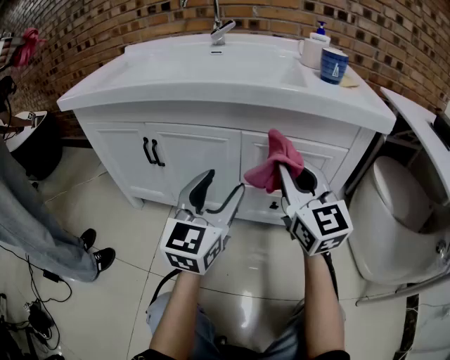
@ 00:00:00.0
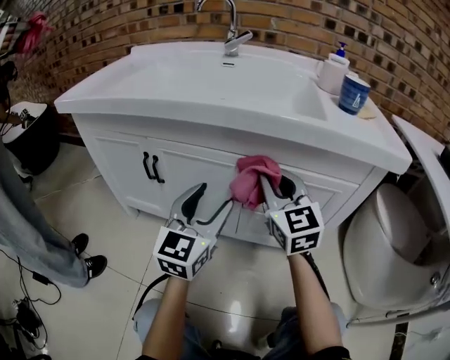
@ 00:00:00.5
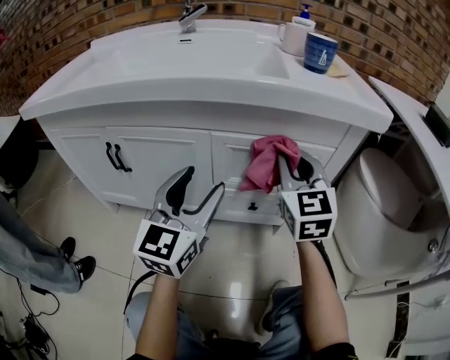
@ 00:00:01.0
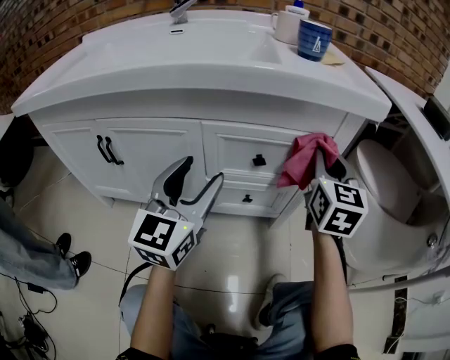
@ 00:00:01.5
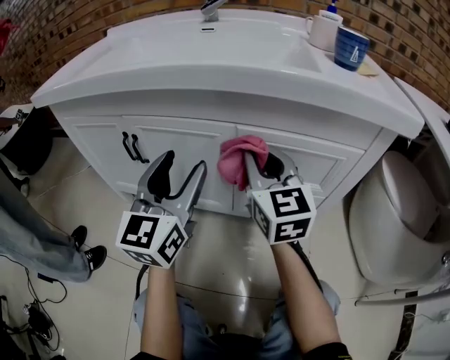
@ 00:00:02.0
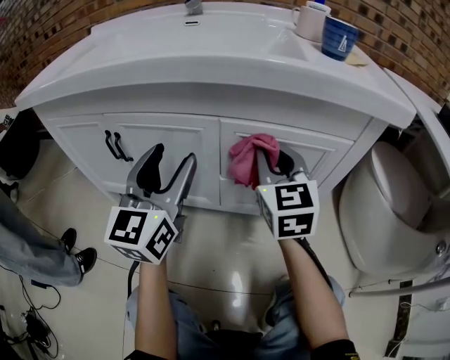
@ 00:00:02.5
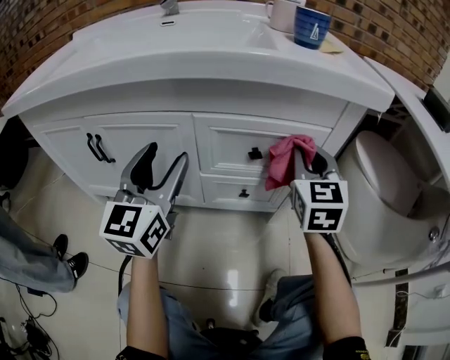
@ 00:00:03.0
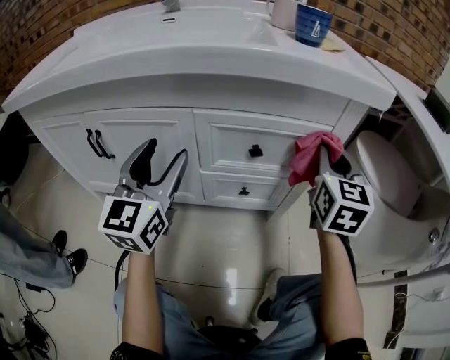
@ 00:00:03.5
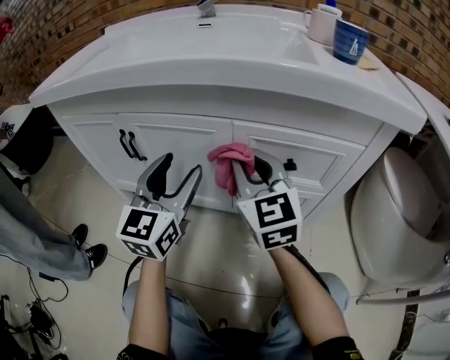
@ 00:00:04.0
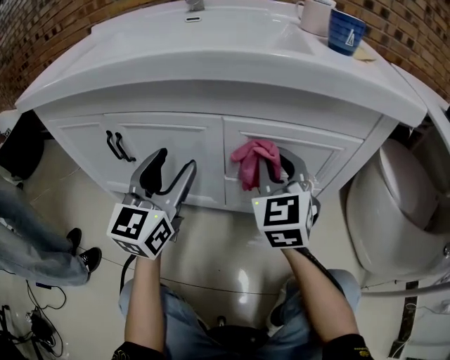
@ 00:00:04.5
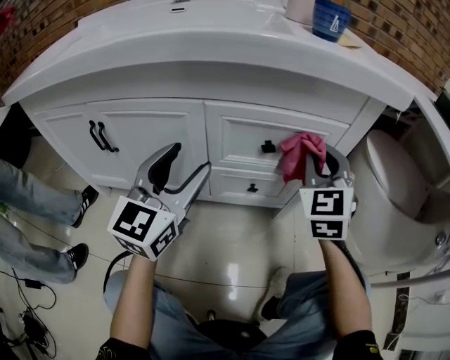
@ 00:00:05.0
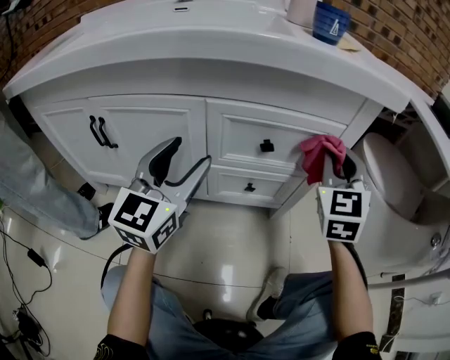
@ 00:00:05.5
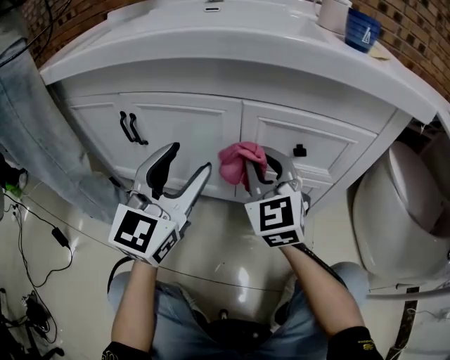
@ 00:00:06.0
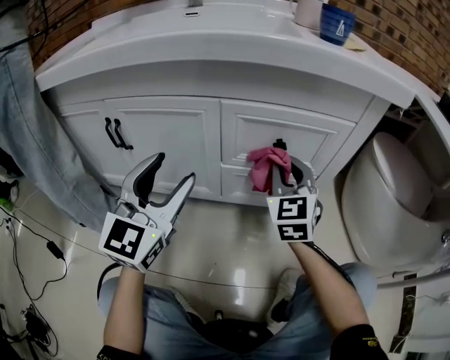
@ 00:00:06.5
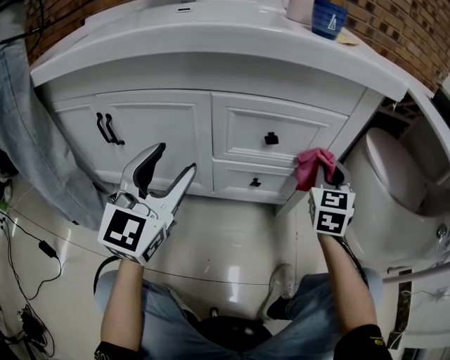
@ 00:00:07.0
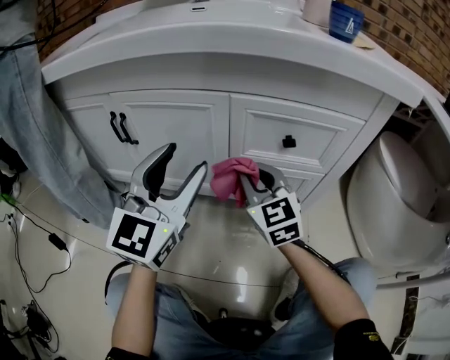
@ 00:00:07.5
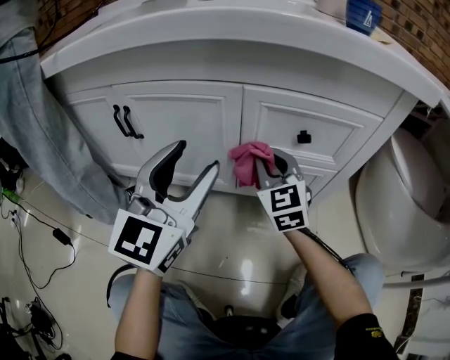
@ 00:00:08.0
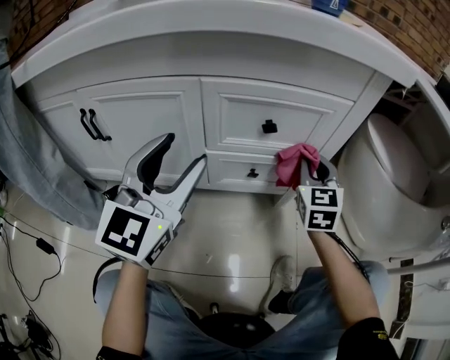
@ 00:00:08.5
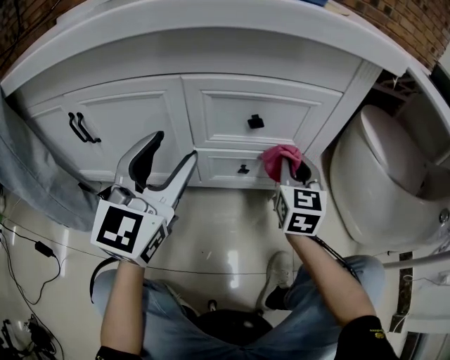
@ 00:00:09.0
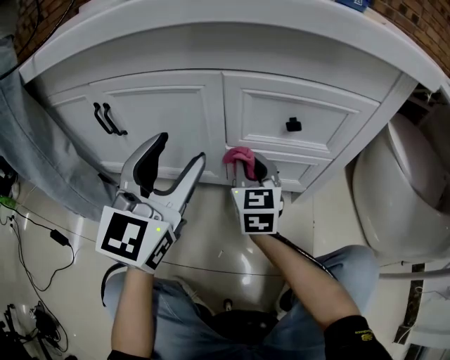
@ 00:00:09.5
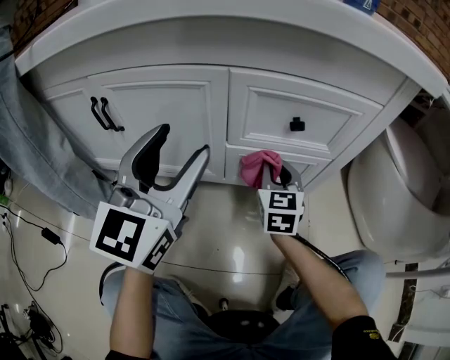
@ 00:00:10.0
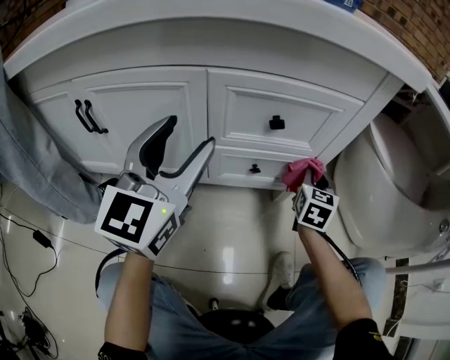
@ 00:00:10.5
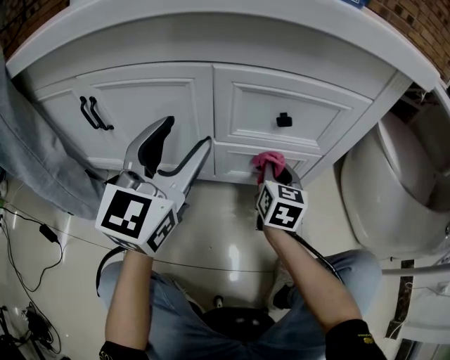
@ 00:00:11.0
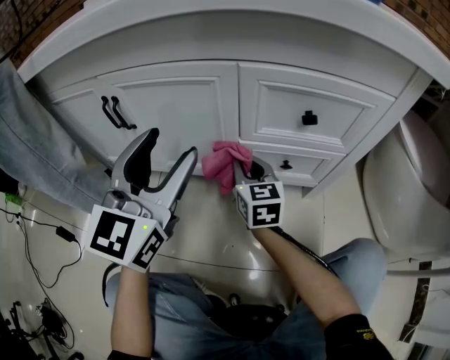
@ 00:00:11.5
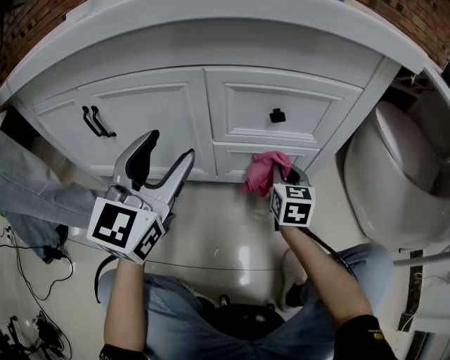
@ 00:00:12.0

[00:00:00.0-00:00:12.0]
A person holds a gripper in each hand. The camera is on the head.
00:00:00.0 to 00:00:02.0: The right gripper moves left and right over roughly 25 cm, changing direction 2 times. Meanwhile the left gripper moves left and right over roughly 10 cm, changing direction 2 times.
00:00:02.0 to 00:00:04.0: The right gripper moves some 25 cm to the right and comes back.
00:00:04.0 to 00:00:06.0: The right gripper moves some 25 cm to the right and comes back, while the left gripper goes to the right and returns, approximately 10 cm each way.
00:00:06.0 to 00:00:08.0: The right gripper shifts approximately 10 cm downward, and goes to the right and returns, some 25 cm each way.
00:00:08.0 to 00:00:10.0: The right gripper swings left and right, some 20 cm each way, with 2 reversals, and turns by some 20 degrees.
00:00:10.0 to 00:00:12.0: The right gripper moves left and right over approximately 30 cm, changing direction 2 times.

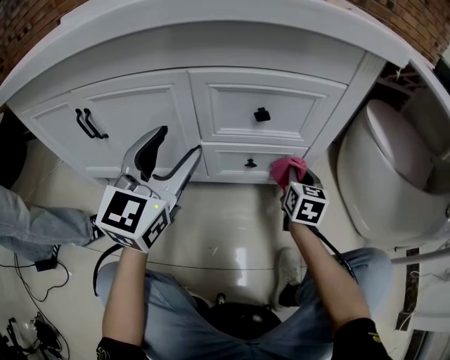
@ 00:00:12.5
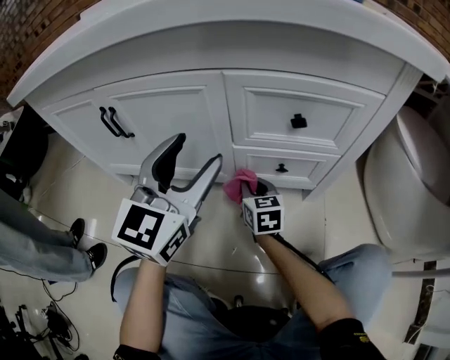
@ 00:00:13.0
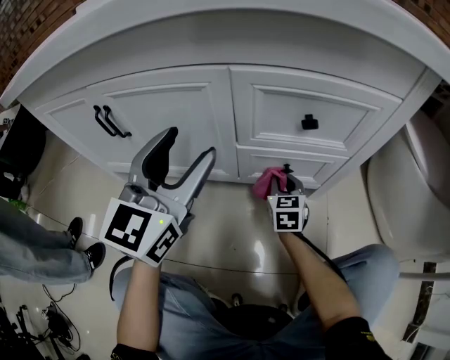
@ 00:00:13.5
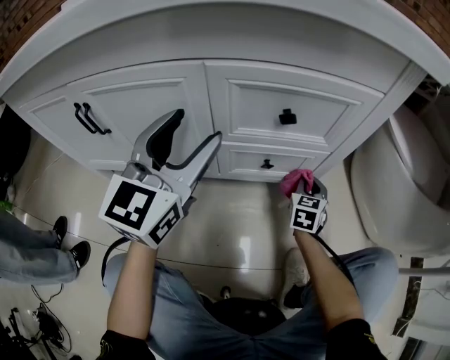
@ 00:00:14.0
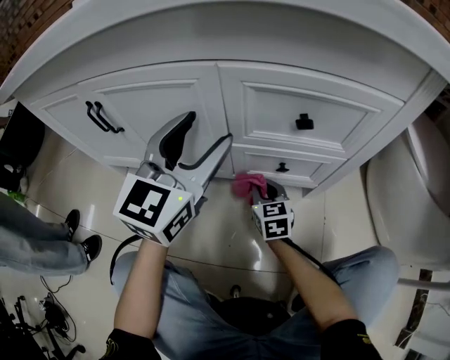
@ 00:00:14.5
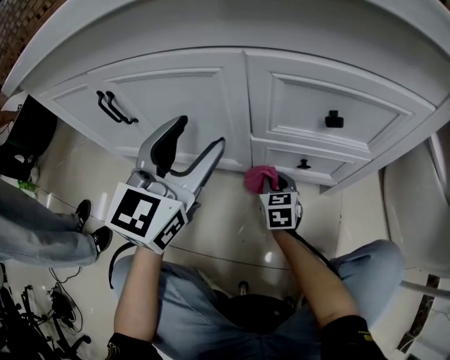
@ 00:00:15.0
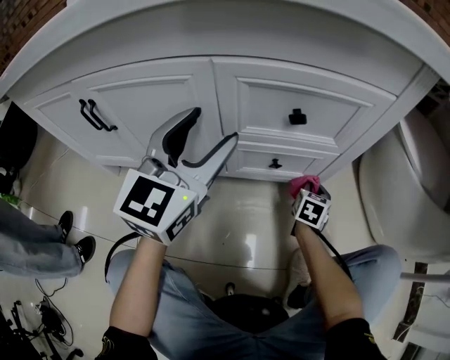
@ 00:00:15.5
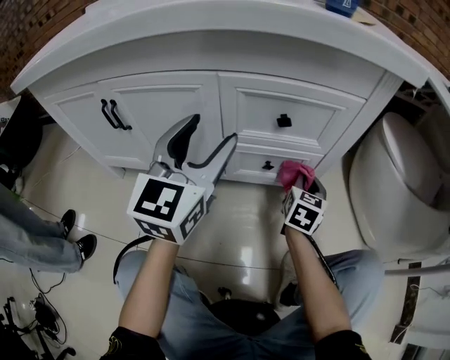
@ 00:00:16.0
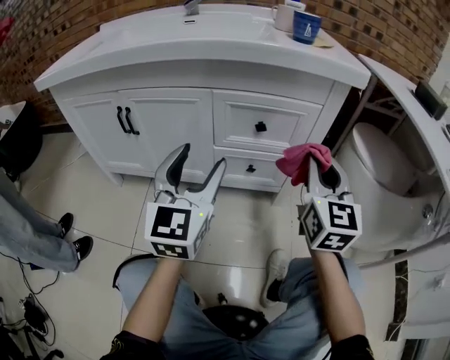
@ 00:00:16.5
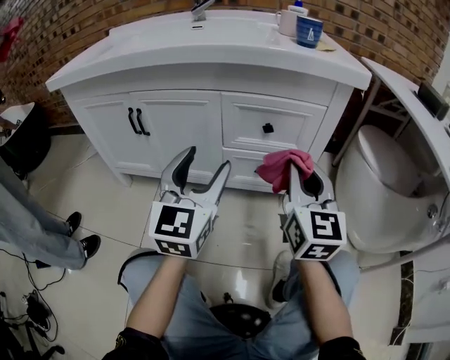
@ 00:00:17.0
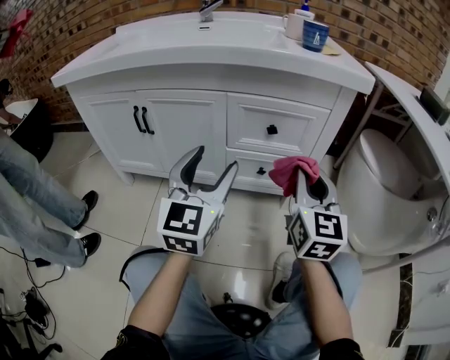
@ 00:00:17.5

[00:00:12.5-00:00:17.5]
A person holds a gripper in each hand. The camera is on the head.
00:00:12.5 to 00:00:15.0: The right gripper moves left and right over some 25 cm, changing direction 2 times, and swivels about 30 degrees, while the left gripper swings left and right, approximately 5 cm each way, with 2 reversals.
00:00:15.0 to 00:00:17.5: The left gripper travels backward, to the right and upward by roughly 20 cm. Meanwhile the right gripper heads upward, to the right and backward, covering some 40 cm, and tips its fingers upward by approximately 40 degrees.

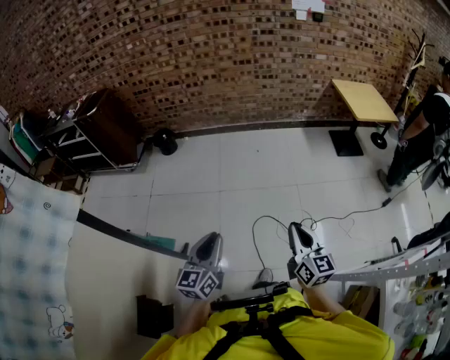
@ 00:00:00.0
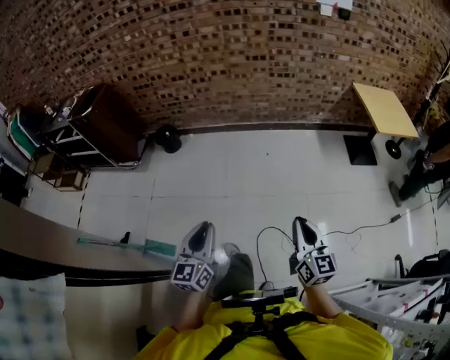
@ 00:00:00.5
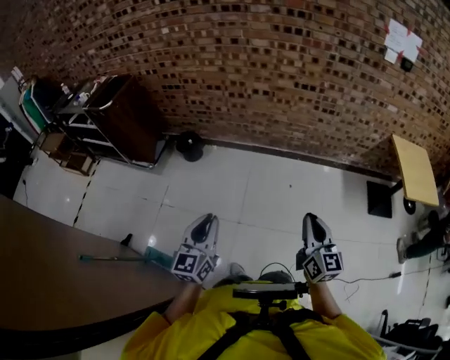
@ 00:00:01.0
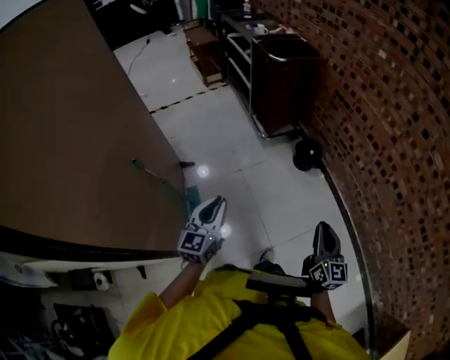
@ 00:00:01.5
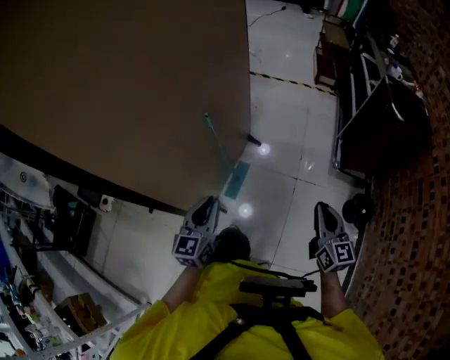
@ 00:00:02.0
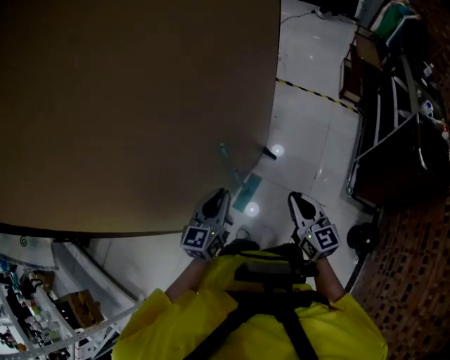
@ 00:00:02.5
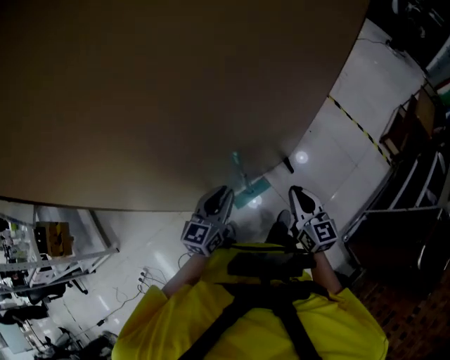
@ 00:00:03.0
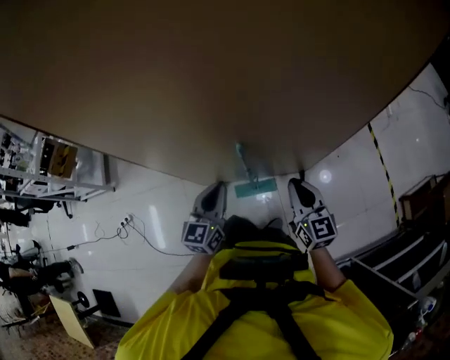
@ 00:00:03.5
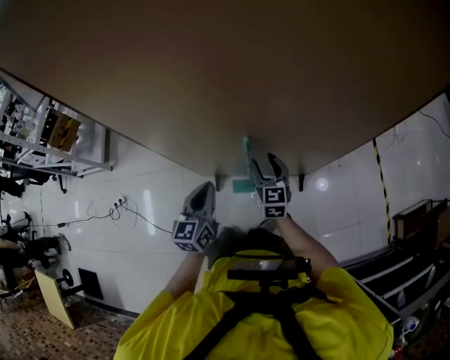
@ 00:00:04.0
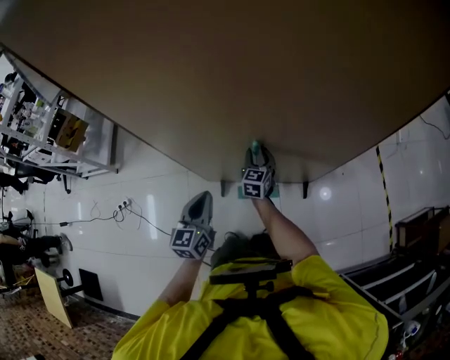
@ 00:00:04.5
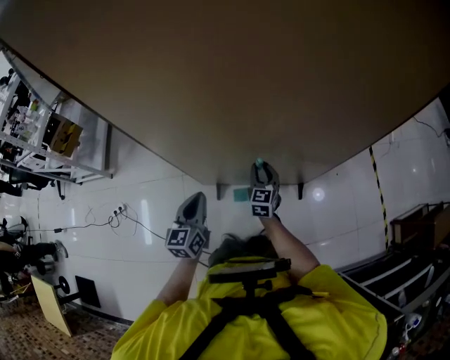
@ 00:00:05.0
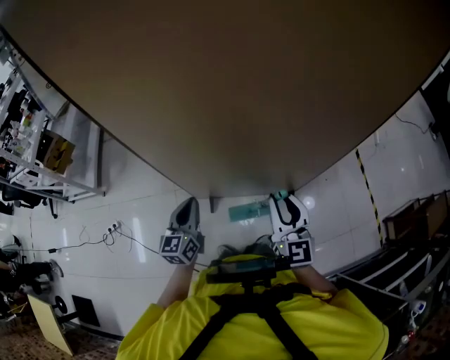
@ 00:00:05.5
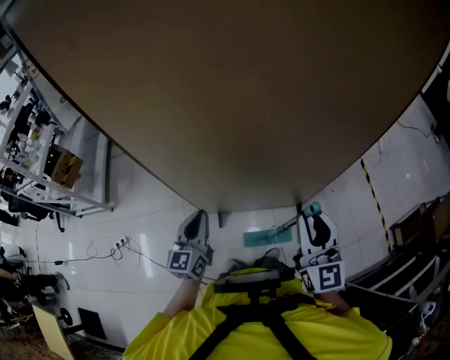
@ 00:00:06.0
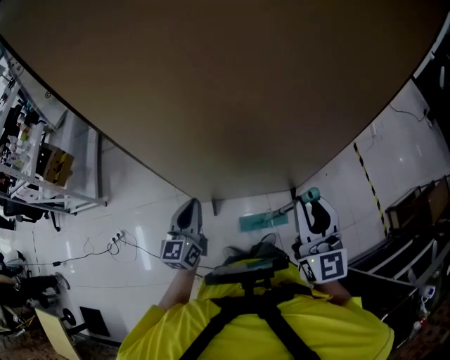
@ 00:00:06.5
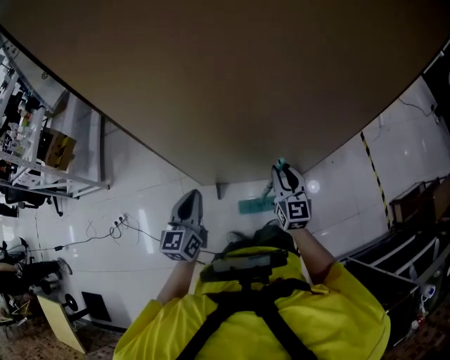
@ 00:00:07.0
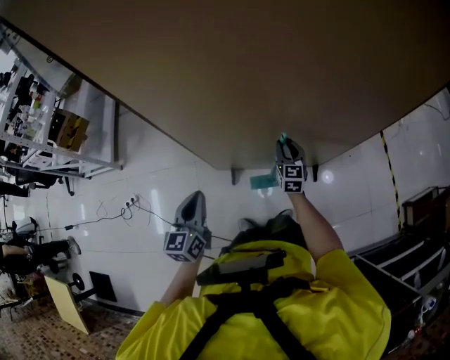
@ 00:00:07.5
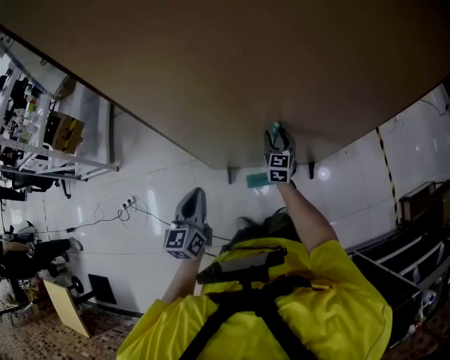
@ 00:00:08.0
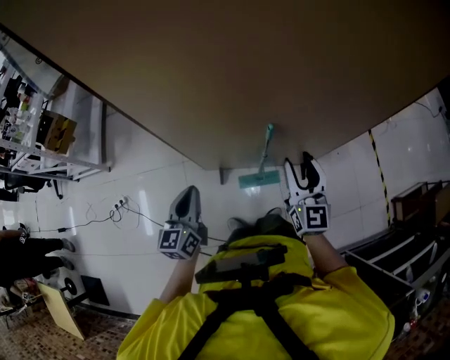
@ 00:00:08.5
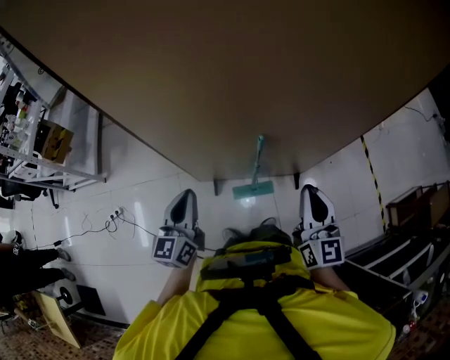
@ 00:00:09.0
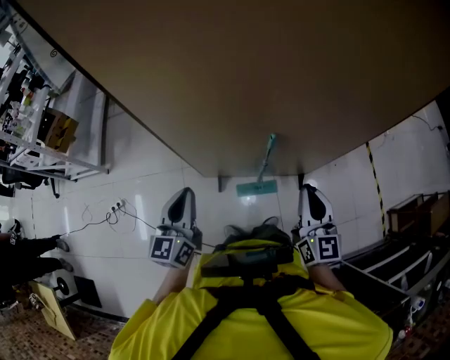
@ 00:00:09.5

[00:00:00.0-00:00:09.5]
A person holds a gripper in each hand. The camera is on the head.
00:00:00.0 to 00:00:02.0: The pair of grippers is taken some 80 cm. The left gripper rotates approximately 110 degrees. The right gripper swivels about 100 degrees.
00:00:02.0 to 00:00:04.0: The left gripper ends up roughly 30 cm from where it was, and swivels roughly 70 degrees, while the right gripper shifts by roughly 60 cm, turns by approximately 70 degrees, and opens its fingers.
00:00:04.0 to 00:00:05.5: The left gripper heads to the left, covering some 10 cm. The right gripper shifts some 20 cm upward and backward, and closes its fingers.
00:00:05.5 to 00:00:07.5: The left gripper heads to the left, covering about 5 cm, while the right gripper heads downward and forward, covering some 30 cm.
00:00:07.5 to 00:00:09.5: The right gripper heads upward and backward, covering some 30 cm, and closes its fingers; the left gripper travels upward by approximately 10 cm.
